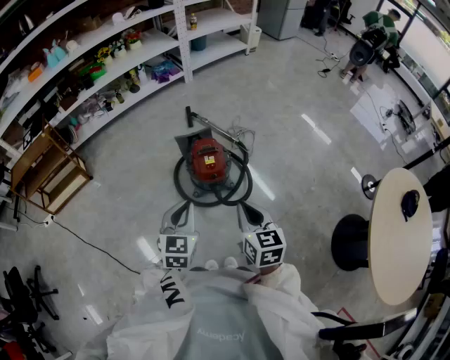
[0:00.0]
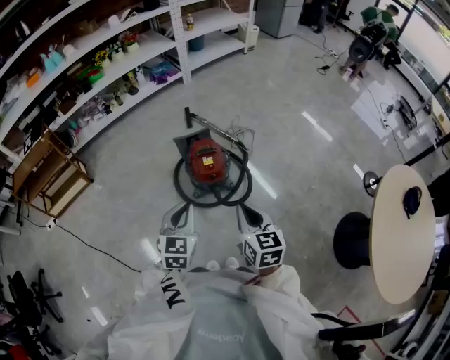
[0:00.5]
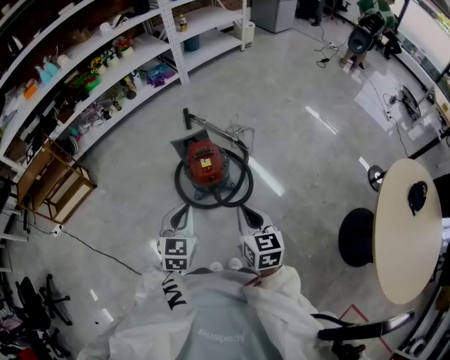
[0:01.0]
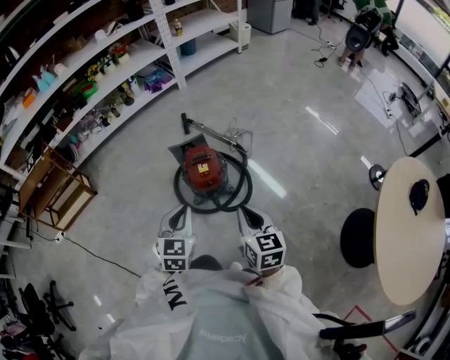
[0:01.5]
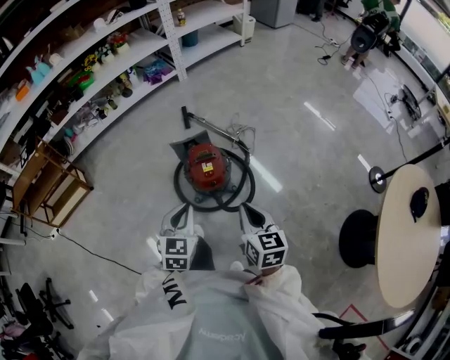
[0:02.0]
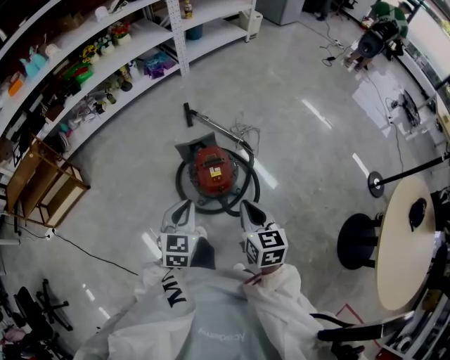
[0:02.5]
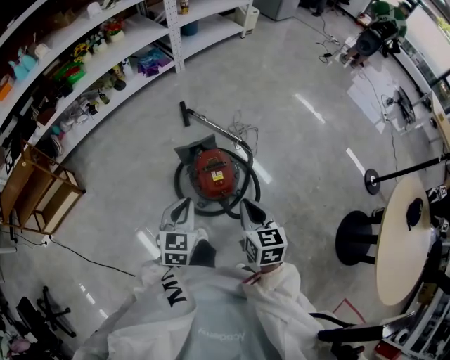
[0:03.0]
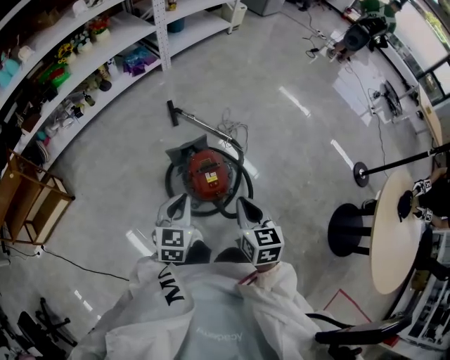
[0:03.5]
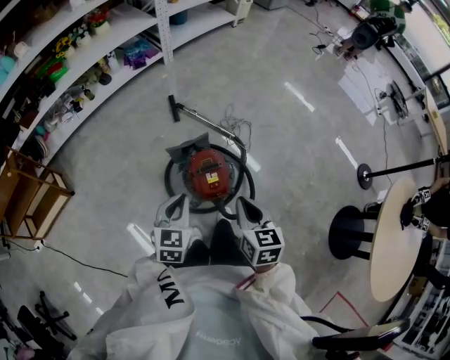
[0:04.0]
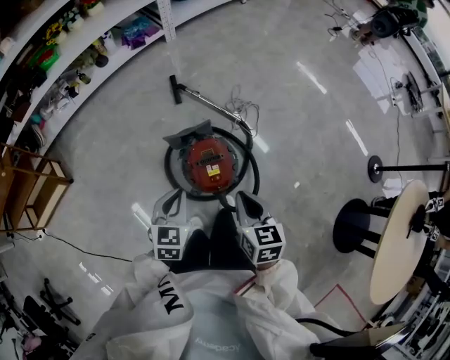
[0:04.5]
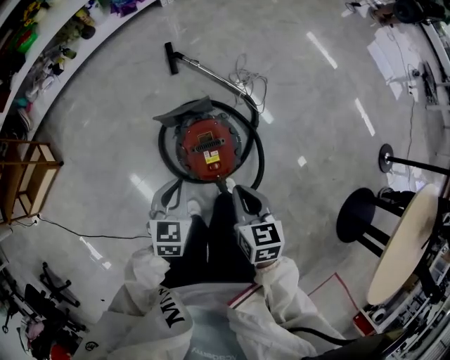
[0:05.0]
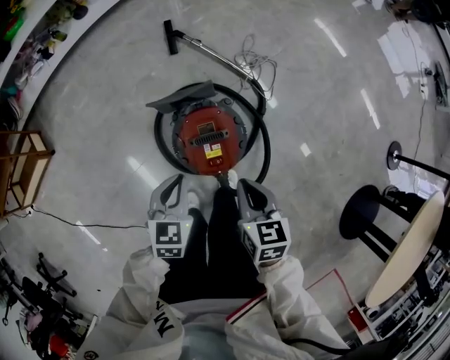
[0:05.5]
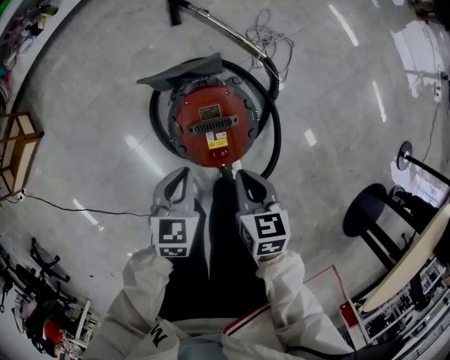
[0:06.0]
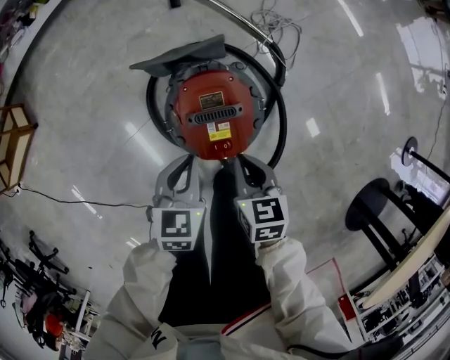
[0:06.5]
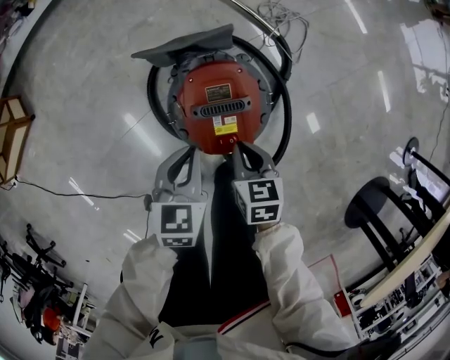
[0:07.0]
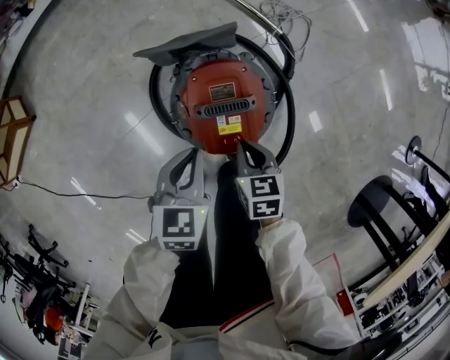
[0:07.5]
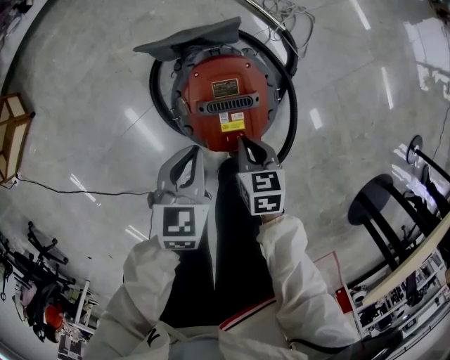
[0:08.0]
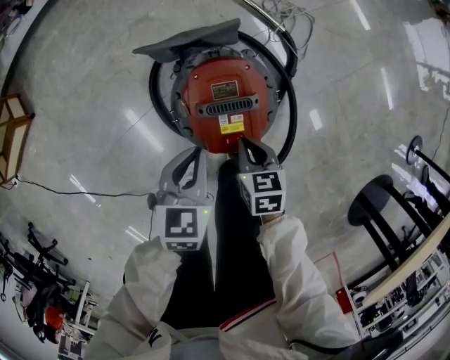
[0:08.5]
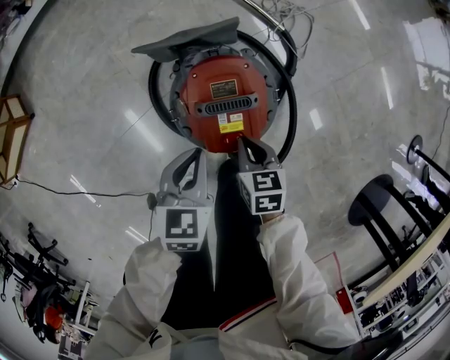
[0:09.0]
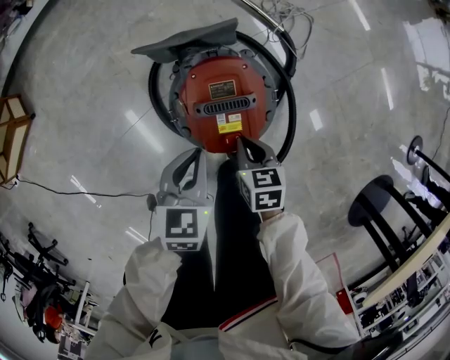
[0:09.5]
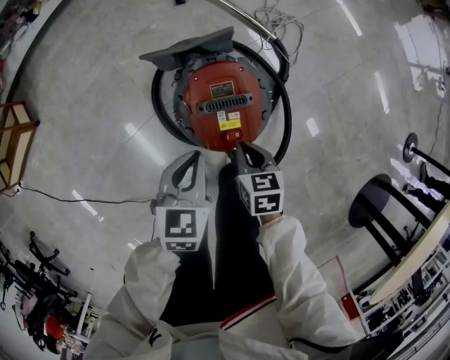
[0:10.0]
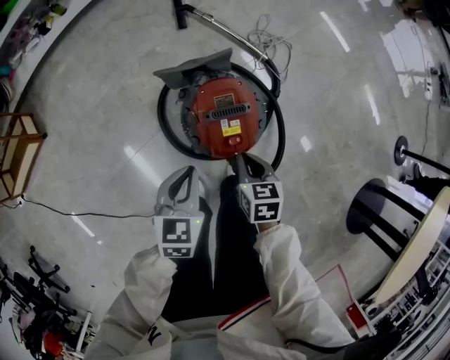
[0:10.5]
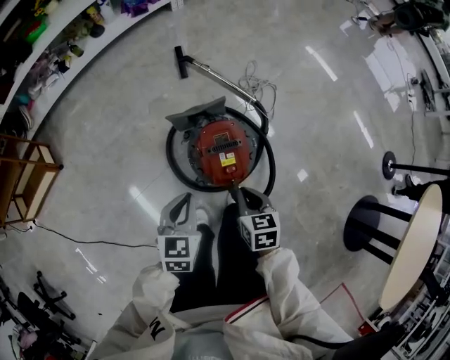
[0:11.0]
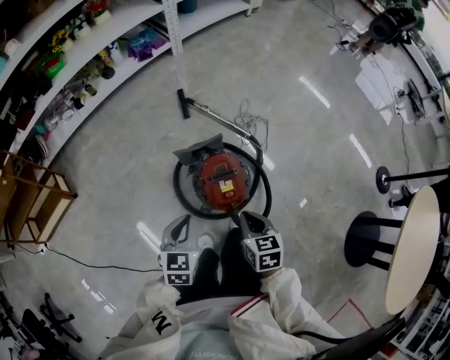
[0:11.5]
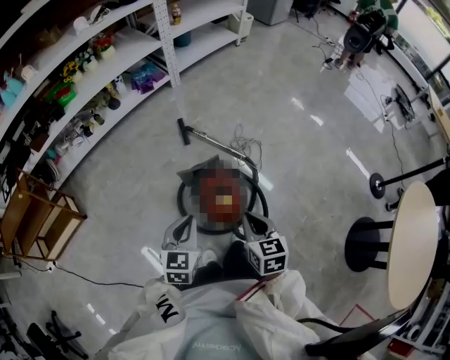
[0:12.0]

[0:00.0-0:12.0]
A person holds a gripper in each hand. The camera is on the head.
0:00.0 to 0:02.0: Both grippers travel together forward, roughly 5 cm.
0:02.0 to 0:04.0: The two grippers go roughly 20 cm forward and to the left.
0:04.0 to 0:06.0: The two grippers go roughly 25 cm downward. The right gripper changes its angle by some 20 degrees.
0:06.0 to 0:08.0: The right gripper travels downward by approximately 10 cm.
0:08.0 to 0:10.0: The grippers stay close to where they were, moving slightly.
0:10.0 to 0:12.0: Both grippers move upward, about 30 cm. The right gripper rotates roughly 30 degrees.

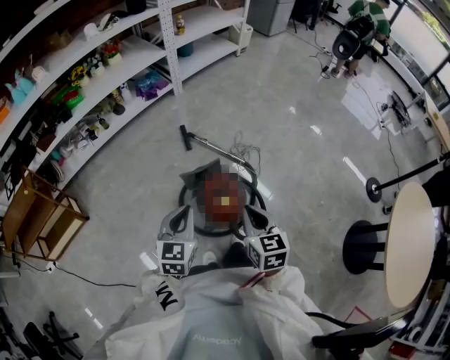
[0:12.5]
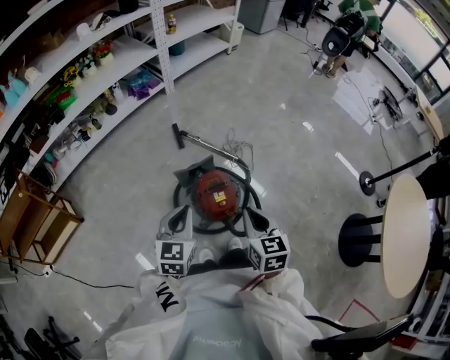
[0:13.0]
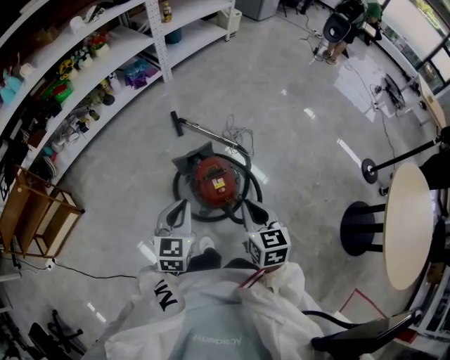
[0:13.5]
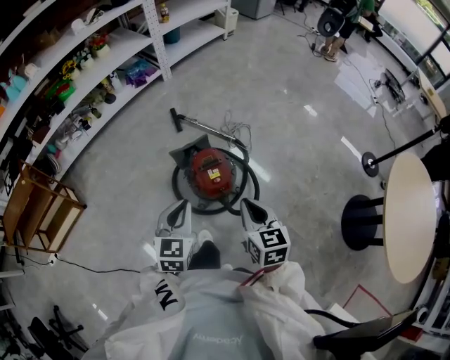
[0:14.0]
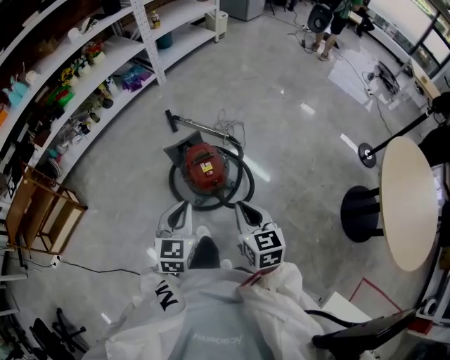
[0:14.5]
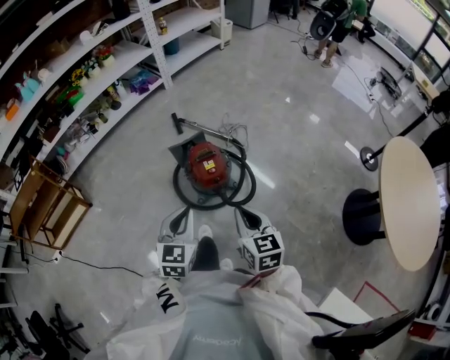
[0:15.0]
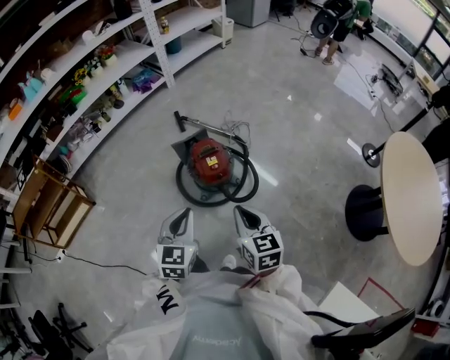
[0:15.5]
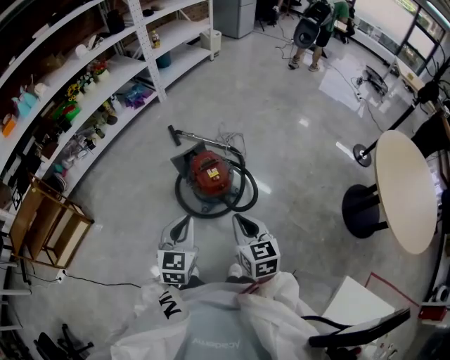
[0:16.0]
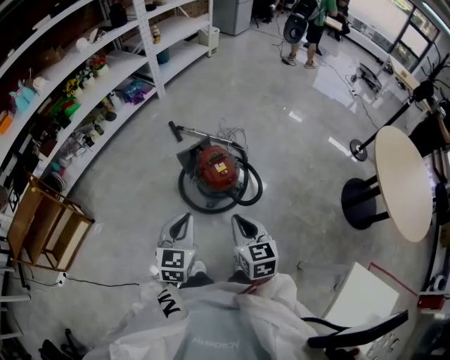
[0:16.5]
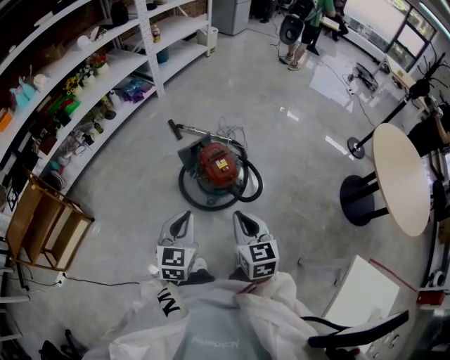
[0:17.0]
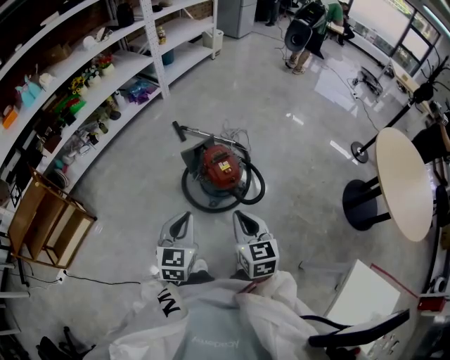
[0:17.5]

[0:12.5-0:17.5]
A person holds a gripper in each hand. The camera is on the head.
0:12.5 to 0:15.0: Both grippers move backward, approximately 20 cm.
0:15.0 to 0:17.5: Both grippers move to the left, roughly 15 cm.

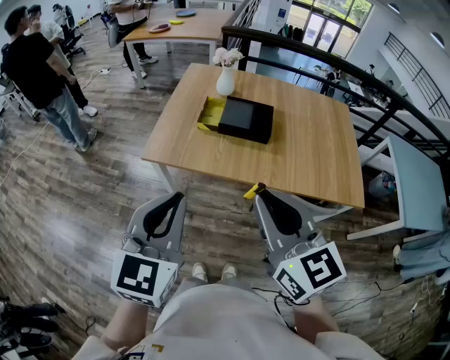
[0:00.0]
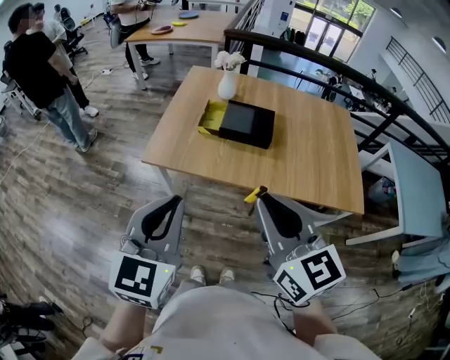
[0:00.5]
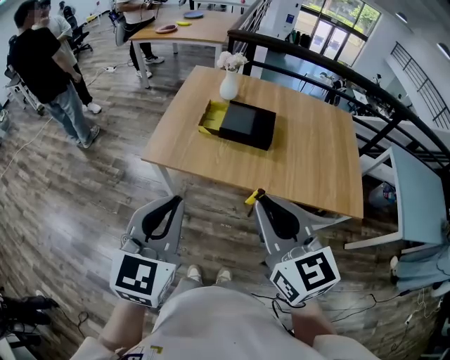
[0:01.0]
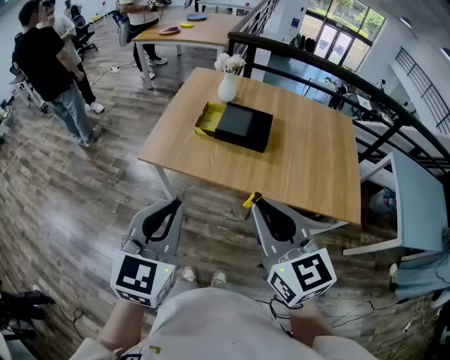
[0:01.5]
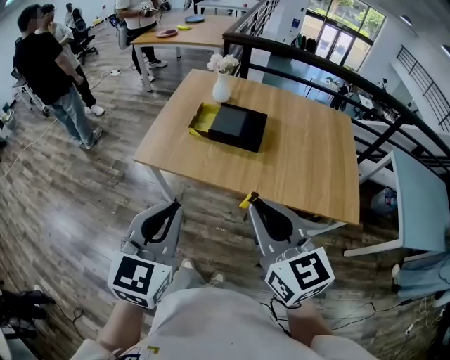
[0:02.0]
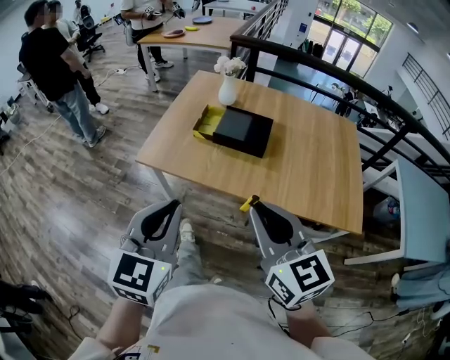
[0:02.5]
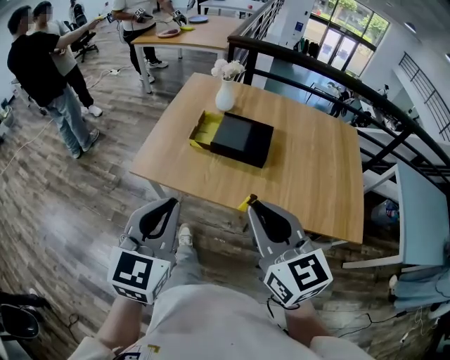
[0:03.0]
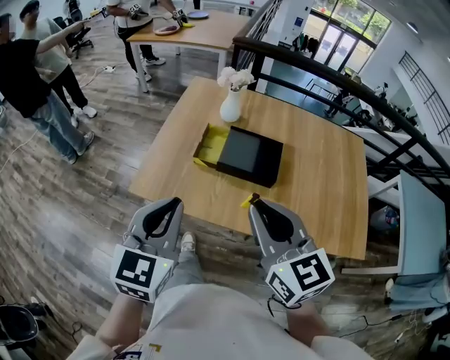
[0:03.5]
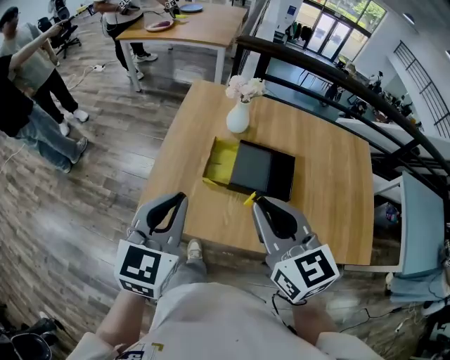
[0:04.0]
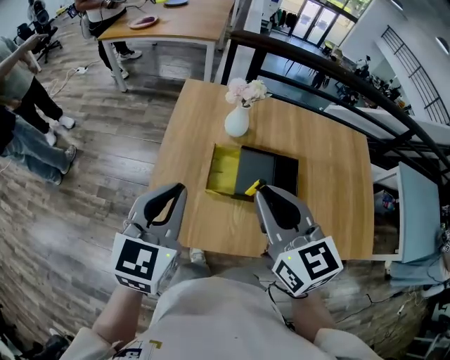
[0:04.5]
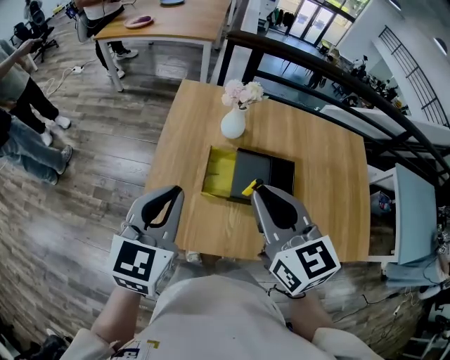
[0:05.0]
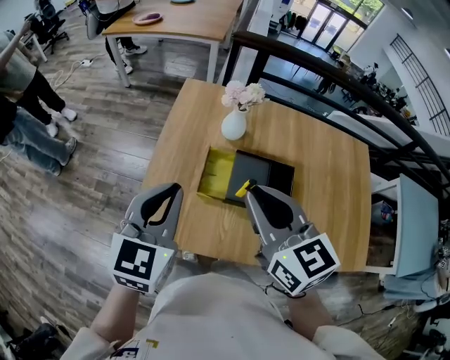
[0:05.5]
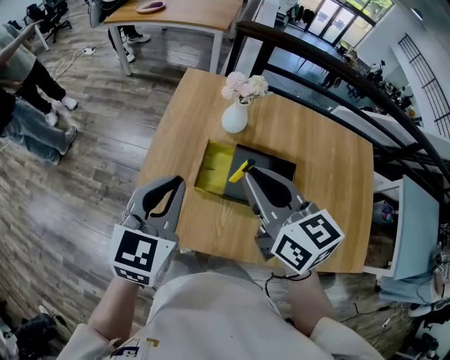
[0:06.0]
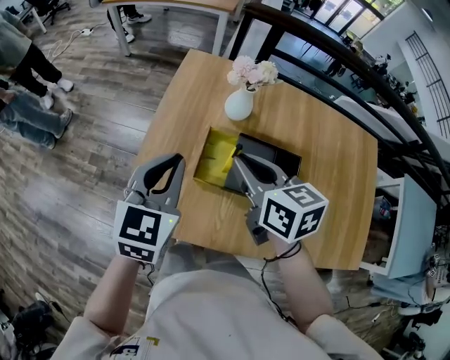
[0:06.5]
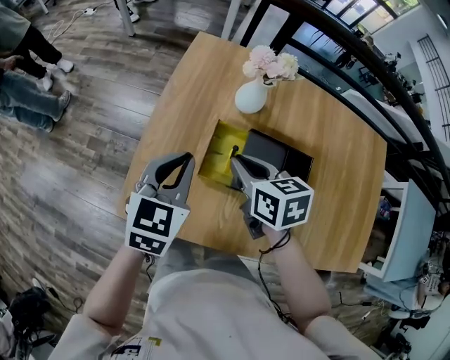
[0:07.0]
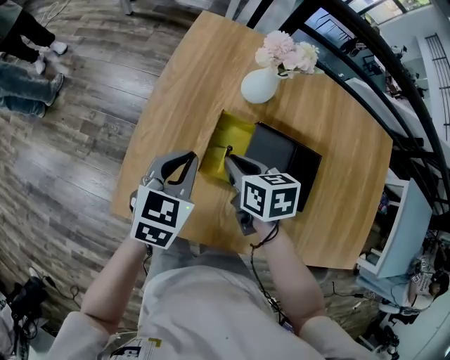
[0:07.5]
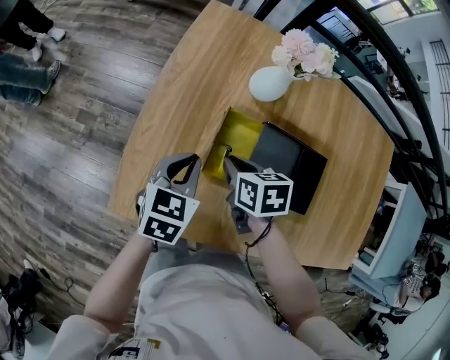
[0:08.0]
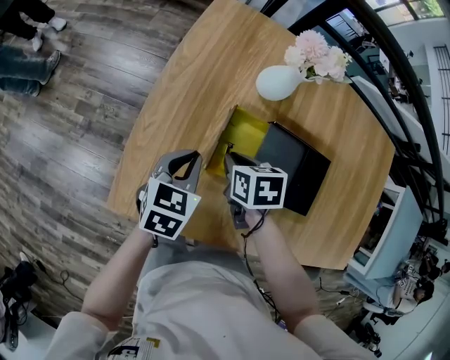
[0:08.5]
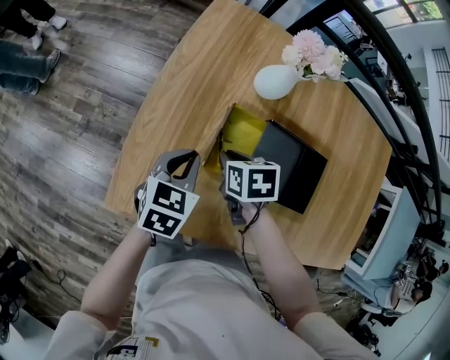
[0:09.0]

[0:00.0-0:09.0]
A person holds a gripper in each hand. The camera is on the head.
0:00.0 to 0:02.0: The two grippers go approximately 10 cm to the right.
0:02.0 to 0:04.5: Both grippers are carried forward, approximately 50 cm.
0:04.5 to 0:07.0: Both grippers move downward and forward, roughly 20 cm. The right gripper swivels about 30 degrees.
0:07.0 to 0:09.0: The two grippers go approximately 15 cm downward. The right gripper turns by approximately 30 degrees.

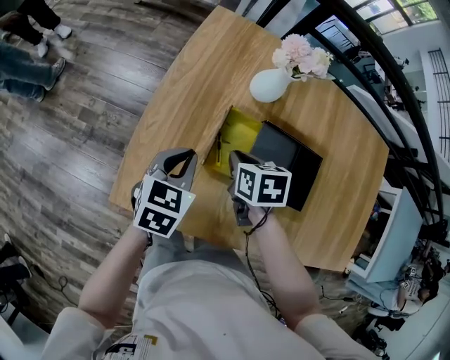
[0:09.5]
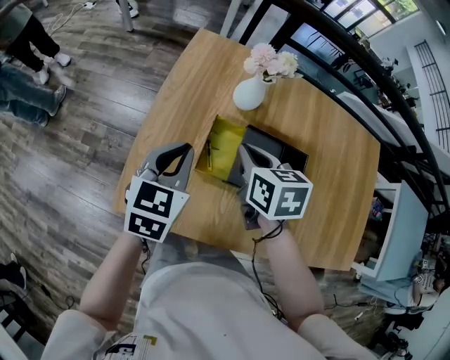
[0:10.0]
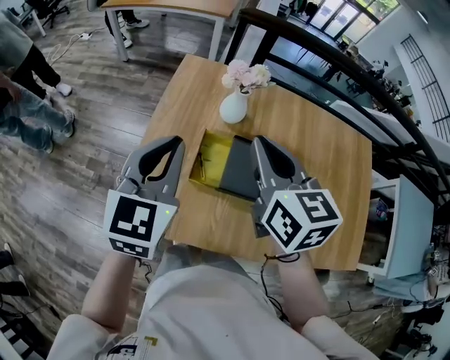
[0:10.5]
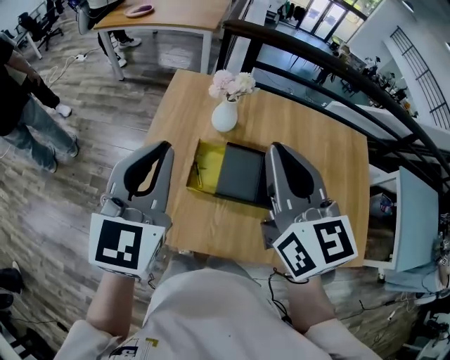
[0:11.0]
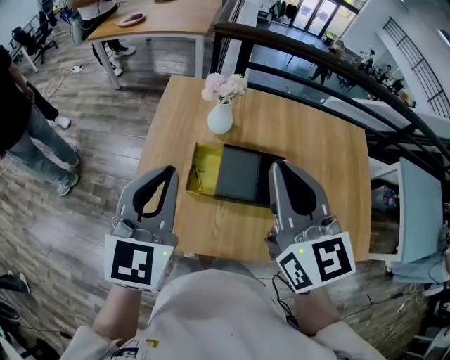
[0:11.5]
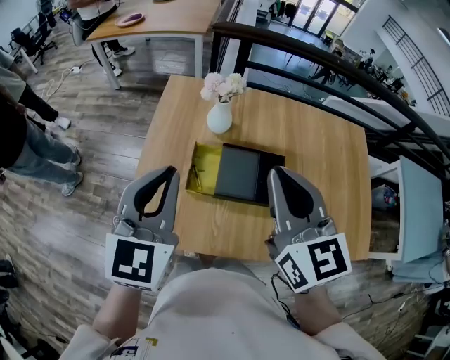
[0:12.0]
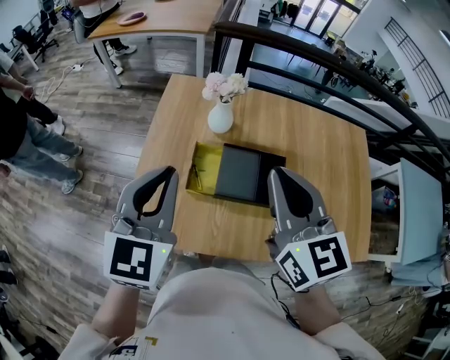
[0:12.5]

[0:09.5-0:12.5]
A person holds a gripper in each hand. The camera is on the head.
0:09.5 to 0:11.0: The two grippers go approximately 35 cm upward. The left gripper tilts its fingers about 30 degrees upward, while the right gripper angles its fingers upward, by roughly 50 degrees.
0:11.0 to 0:12.5: There are only small adjustments of the grippers.
